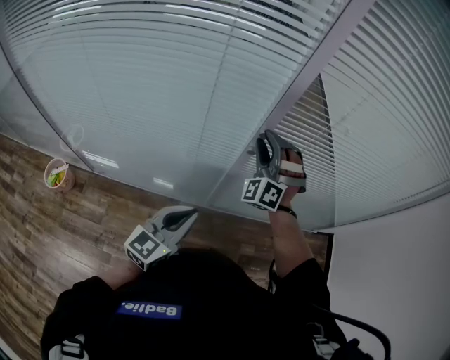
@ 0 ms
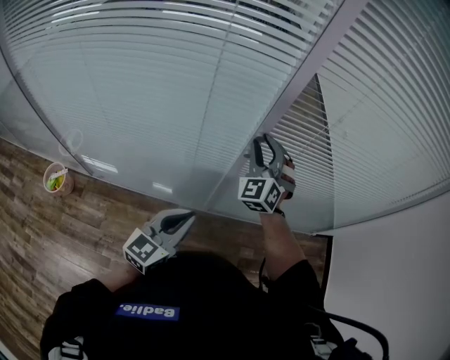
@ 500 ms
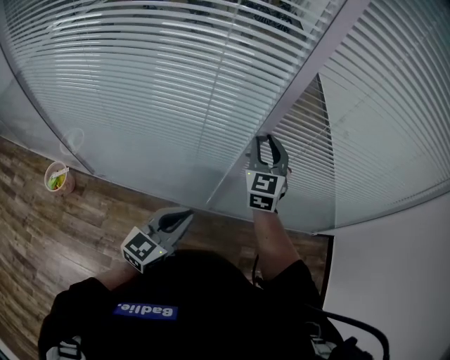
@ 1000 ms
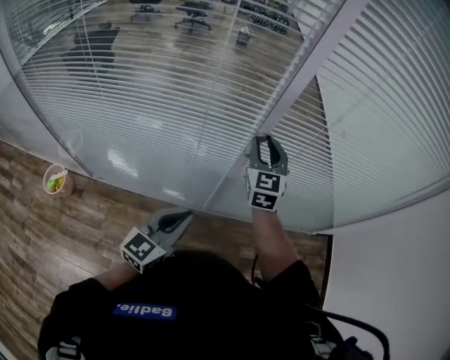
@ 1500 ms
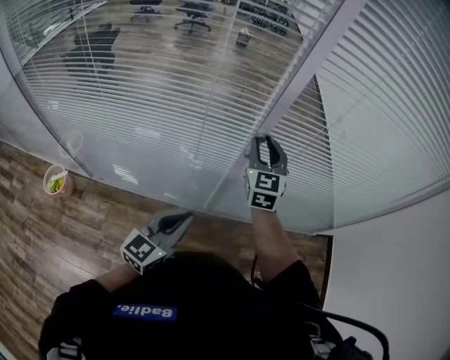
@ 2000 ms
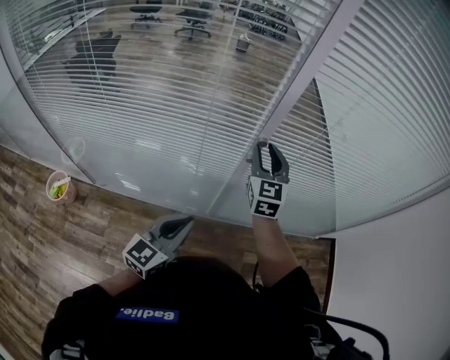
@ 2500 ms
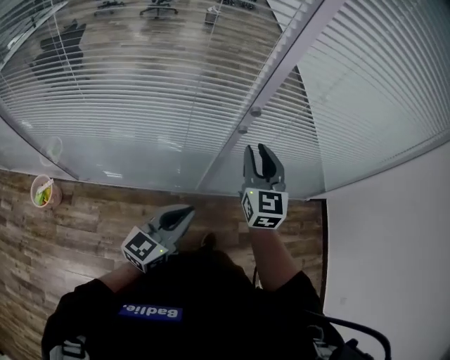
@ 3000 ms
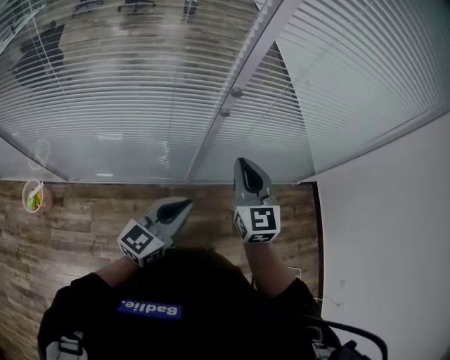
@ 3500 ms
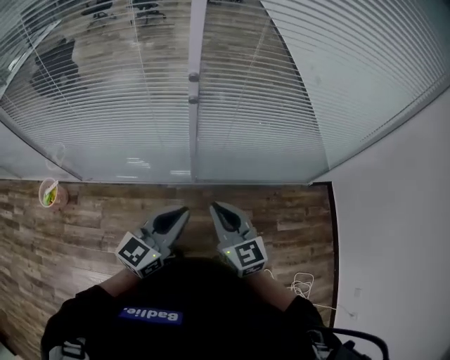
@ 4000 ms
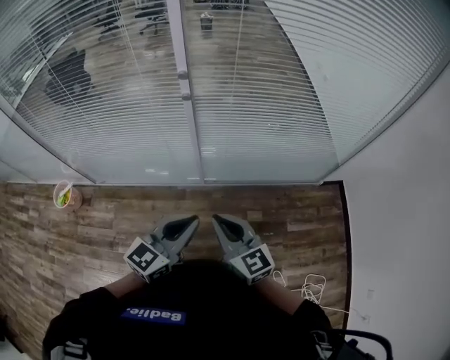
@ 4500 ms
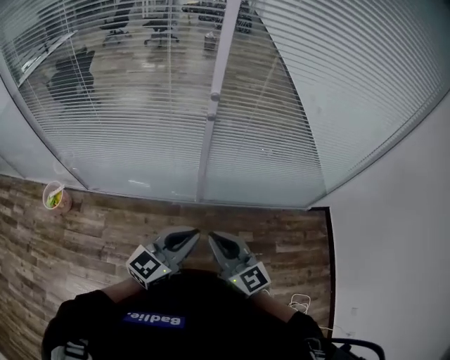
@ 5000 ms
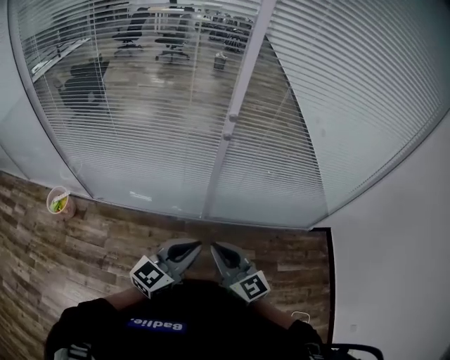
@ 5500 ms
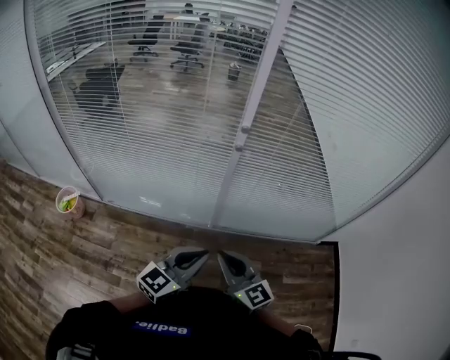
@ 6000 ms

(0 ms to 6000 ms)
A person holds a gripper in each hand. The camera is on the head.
0 ms - 2000 ms: The right gripper twists approximately 60 degrees clockwise, seen from behind.
2000 ms - 4000 ms: The left gripper shifts approximately 15 cm to the right and backward. Meanwhile the right gripper is displaced backward by some 30 cm, changes its angle by some 30 degrees, and closes its fingers.
4000 ms - 6000 ms: The left gripper travels backward by some 5 cm, while the right gripper shifts about 10 cm backward and to the left.

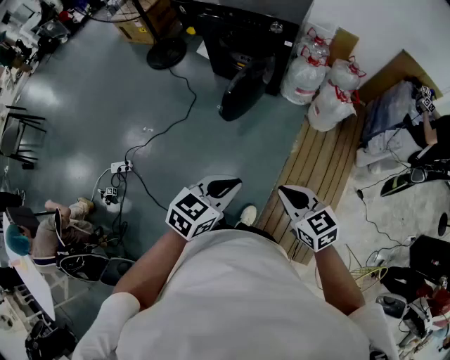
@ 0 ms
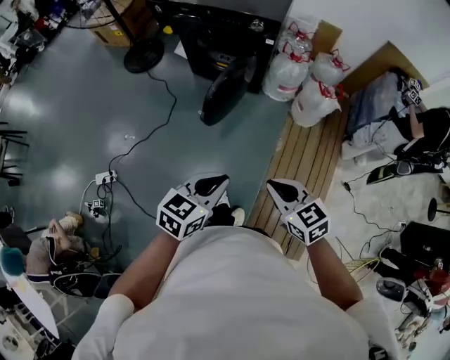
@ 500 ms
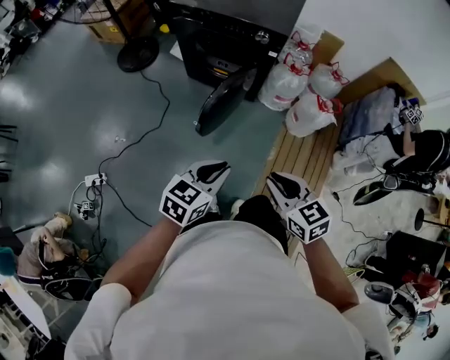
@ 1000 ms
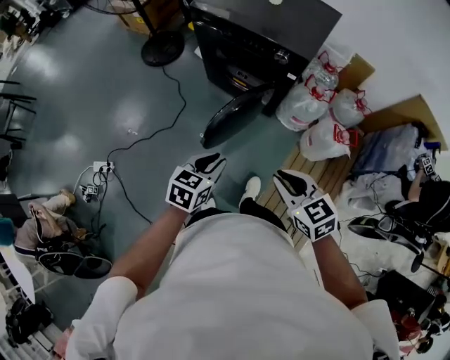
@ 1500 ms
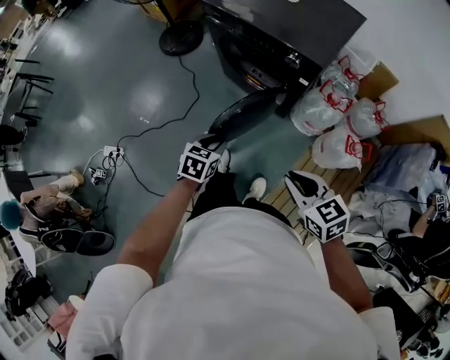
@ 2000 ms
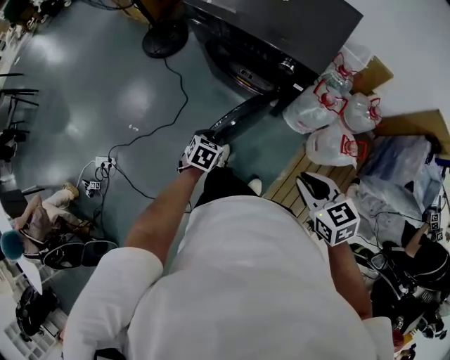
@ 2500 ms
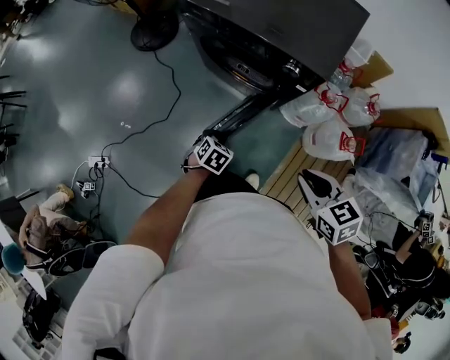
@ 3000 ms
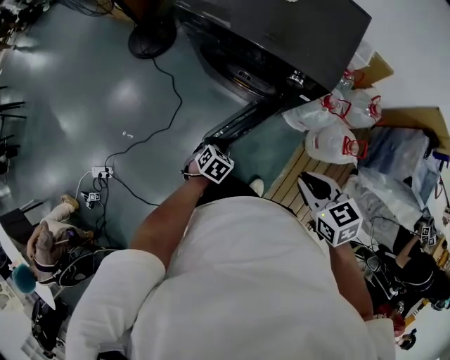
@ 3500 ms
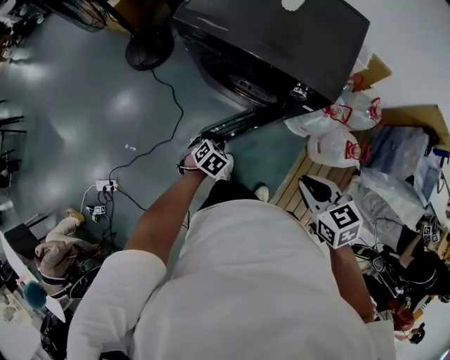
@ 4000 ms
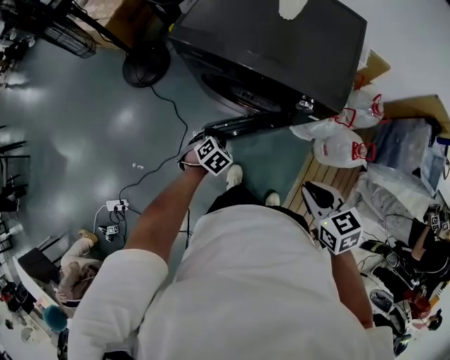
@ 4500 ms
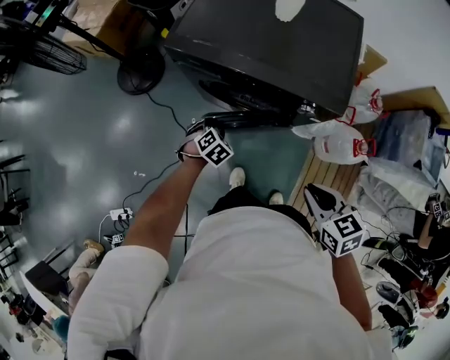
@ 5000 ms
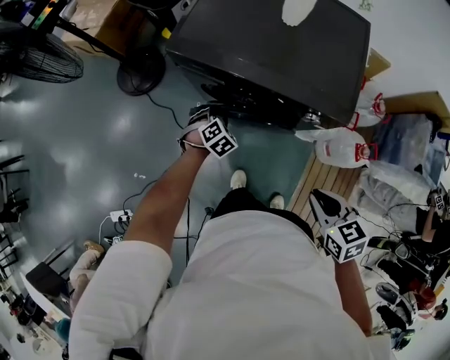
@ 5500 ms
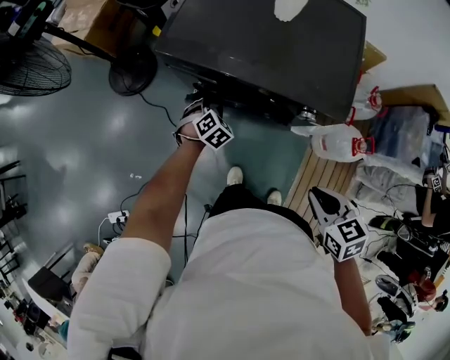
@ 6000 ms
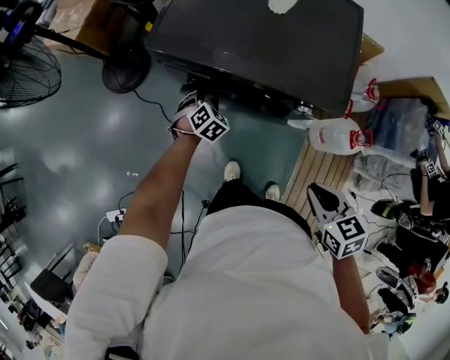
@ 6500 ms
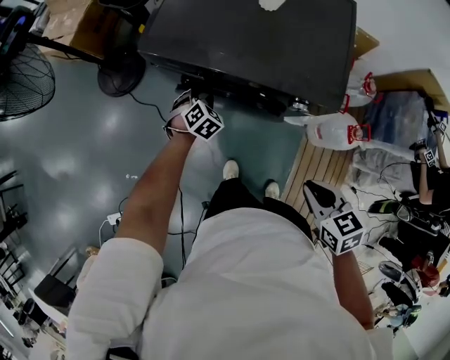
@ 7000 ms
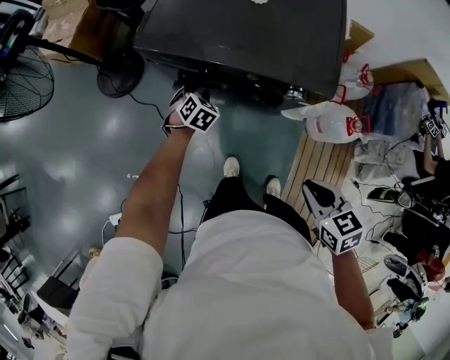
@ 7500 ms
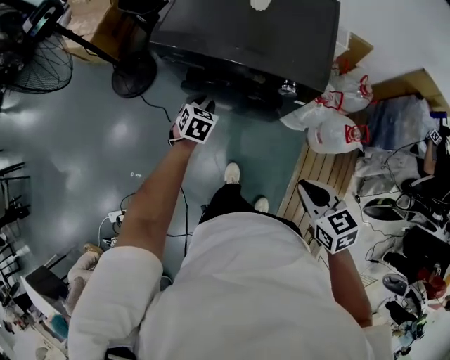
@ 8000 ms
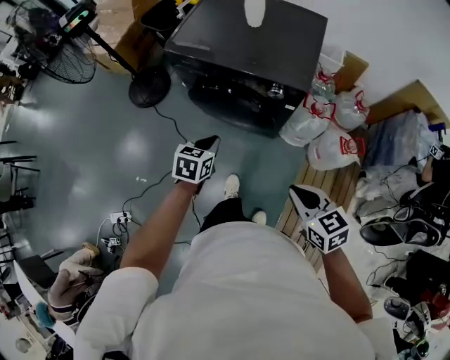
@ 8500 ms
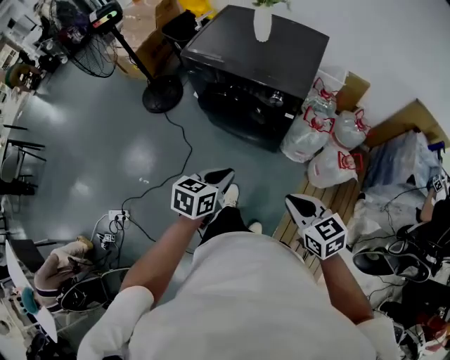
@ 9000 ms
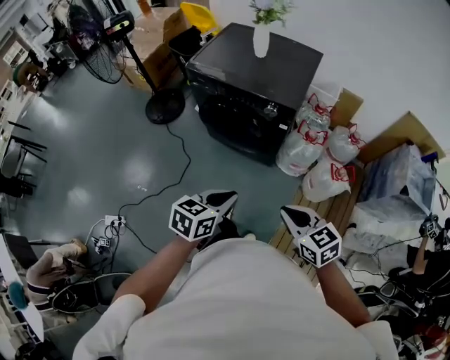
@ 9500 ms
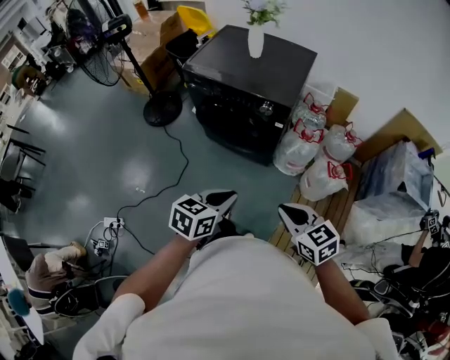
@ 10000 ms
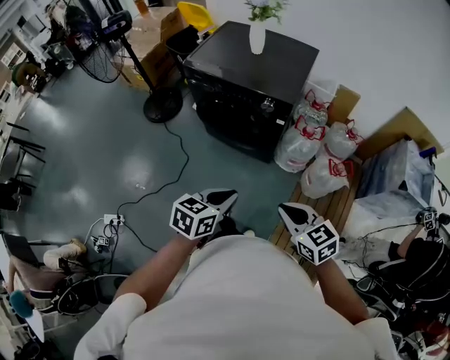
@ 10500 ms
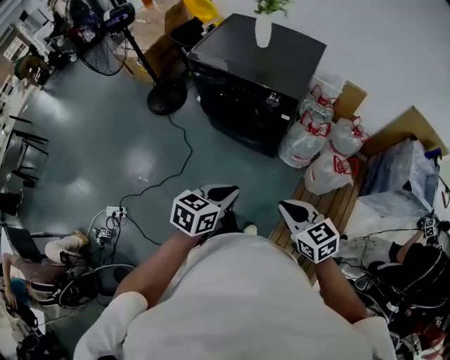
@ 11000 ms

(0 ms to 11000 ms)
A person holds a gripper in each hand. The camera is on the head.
0 ms - 2000 ms: The left gripper ends up roughly 40 cm from where it was, rotates approximately 40 degrees, and opens its fingers. The right gripper ends up some 35 cm from where it was.
2000 ms - 3500 ms: The left gripper travels downward and forward by roughly 15 cm, and changes its angle by approximately 30 degrees, while the right gripper is displaced forward by roughly 15 cm.
3500 ms - 5500 ms: The right gripper goes roughly 10 cm forward, while the left gripper shifts some 25 cm forward, and changes its angle by approximately 30 degrees.
5500 ms - 7500 ms: The left gripper heads forward, covering about 5 cm.
7500 ms - 9000 ms: The left gripper shifts approximately 40 cm backward and upward, turns by approximately 50 degrees, and closes up. The right gripper moves backward, approximately 15 cm, and rotates approximately 20 degrees.
9000 ms - 11000 ms: The left gripper moves backward, some 10 cm.

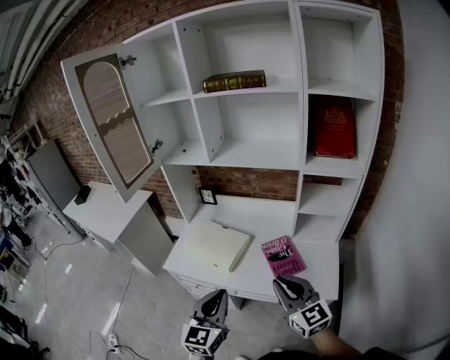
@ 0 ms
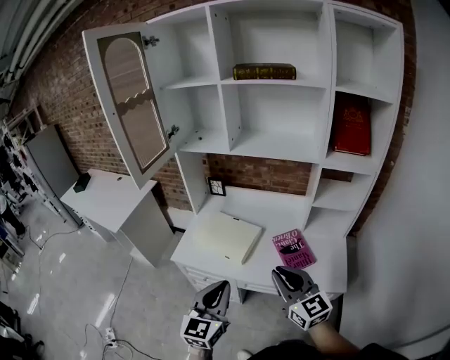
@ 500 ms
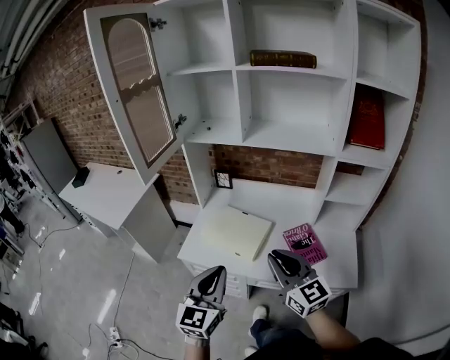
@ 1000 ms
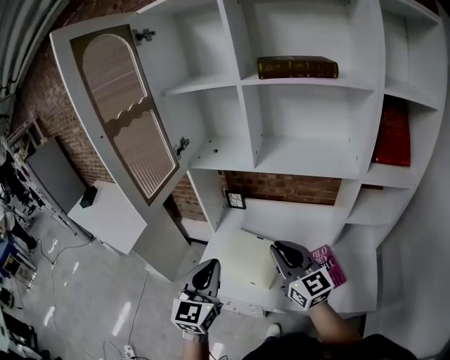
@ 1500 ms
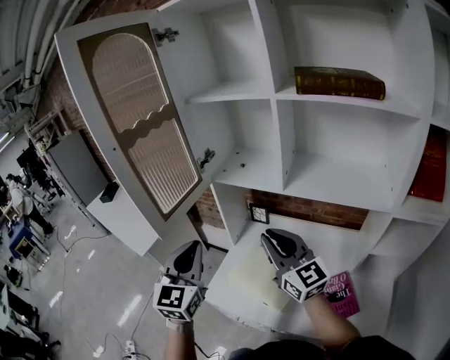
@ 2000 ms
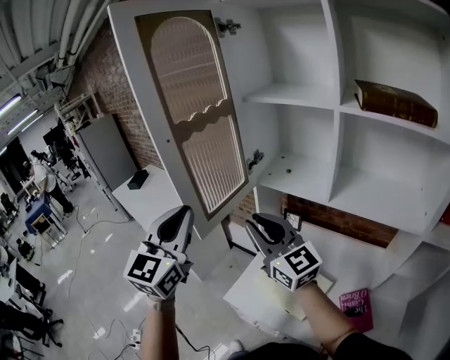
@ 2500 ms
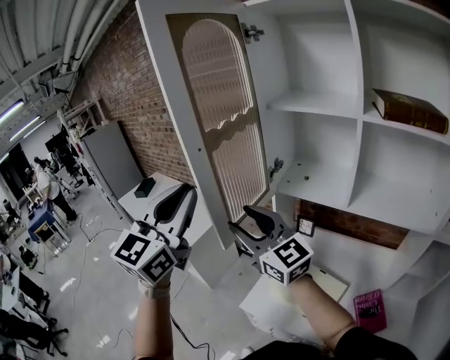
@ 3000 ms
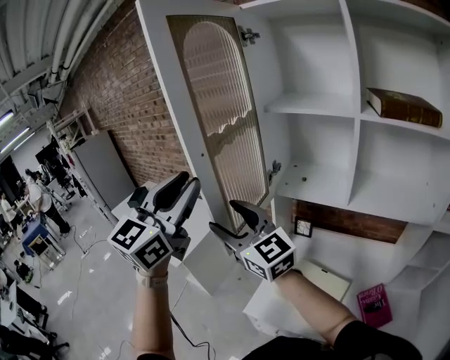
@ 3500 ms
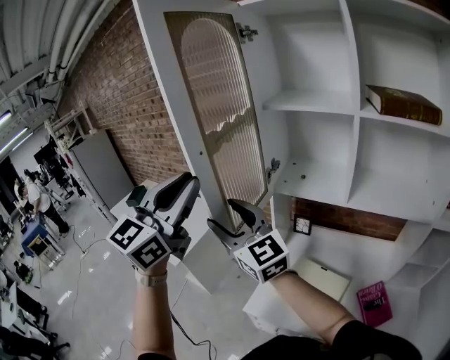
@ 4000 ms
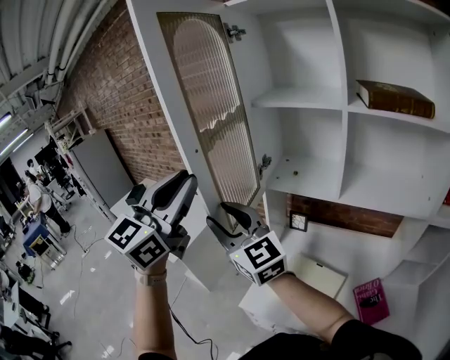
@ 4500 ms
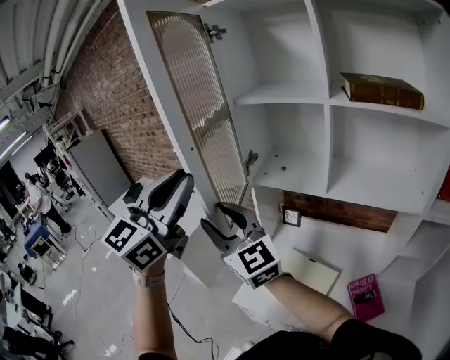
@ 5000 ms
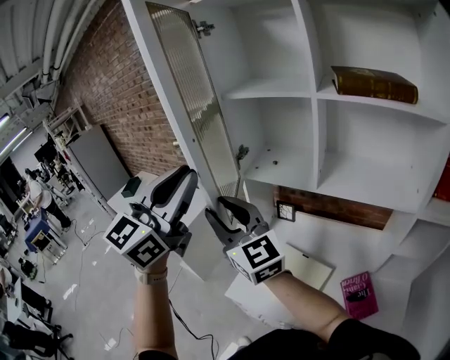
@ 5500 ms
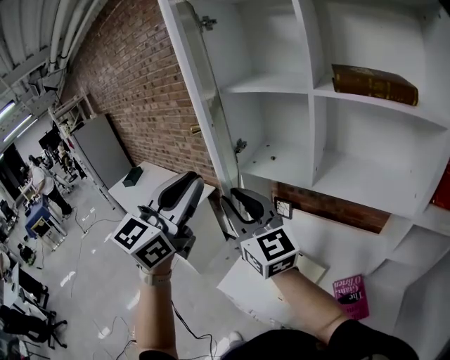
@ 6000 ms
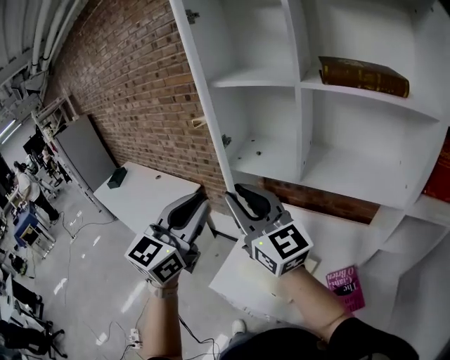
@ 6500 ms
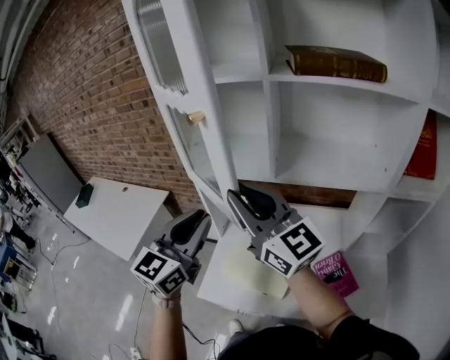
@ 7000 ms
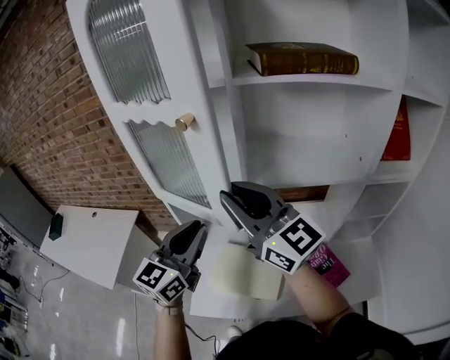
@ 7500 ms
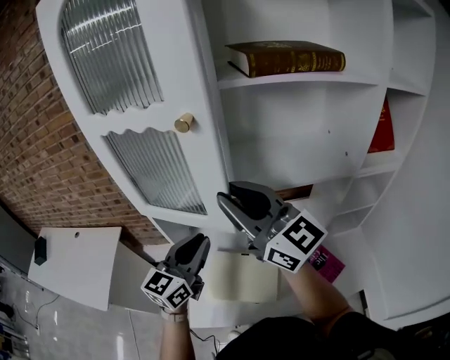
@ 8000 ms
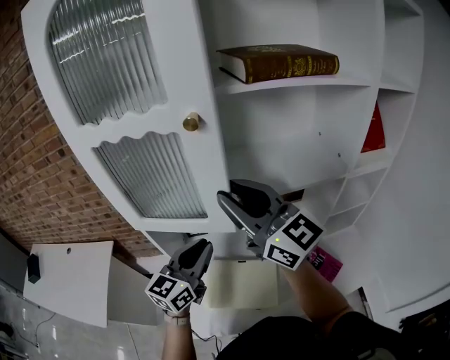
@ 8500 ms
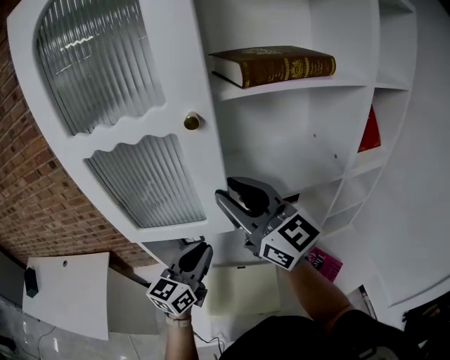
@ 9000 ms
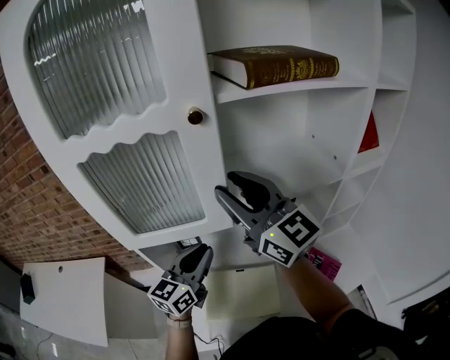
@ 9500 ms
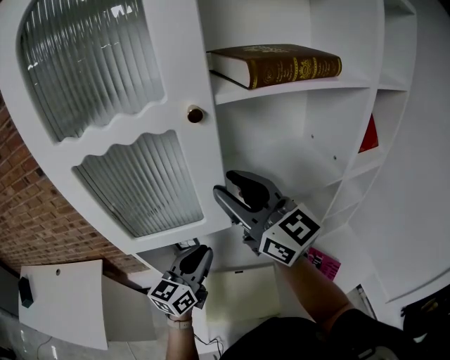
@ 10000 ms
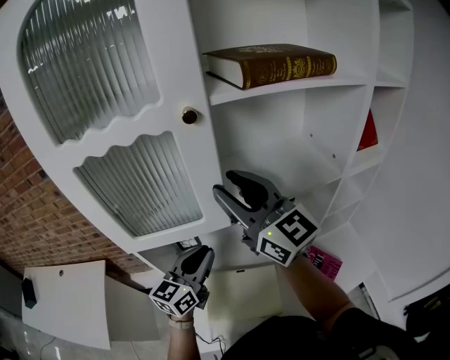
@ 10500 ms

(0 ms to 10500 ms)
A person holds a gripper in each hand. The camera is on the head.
0 ms - 2000 ms: The two grippers travel together, forward and to the left, roughly 40 cm. The left gripper swivels roughly 20 degrees.
2000 ms - 4000 ms: The right gripper shifts about 30 cm to the left and upward, and opens. Meanwhile the left gripper travels upward and to the left by about 25 cm, and changes its angle by roughly 20 degrees.
4000 ms - 6500 ms: The right gripper heads to the right, covering about 20 cm, and closes its fingers, while the left gripper is displaced to the right and downward by approximately 20 cm.
6500 ms - 8500 ms: The right gripper moves approximately 15 cm, and swivels some 20 degrees. The left gripper moves some 25 cm, and changes its angle by roughly 40 degrees.
8500 ms - 10500 ms: The two grippers go some 5 cm forward.
